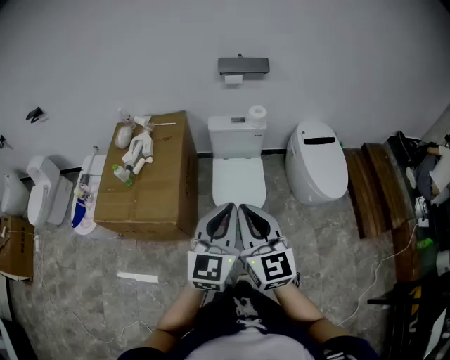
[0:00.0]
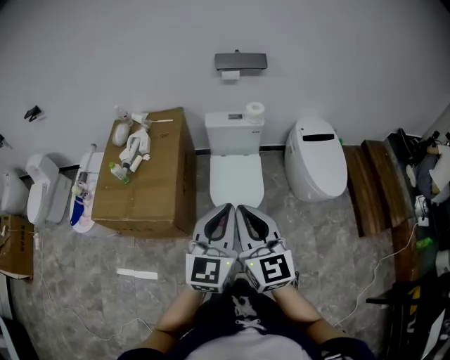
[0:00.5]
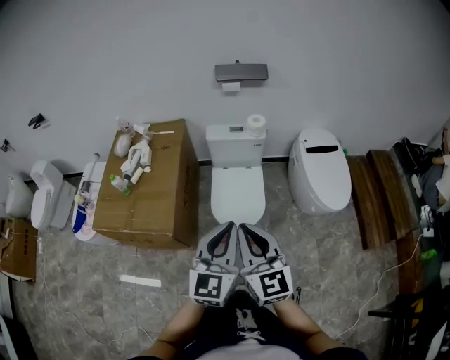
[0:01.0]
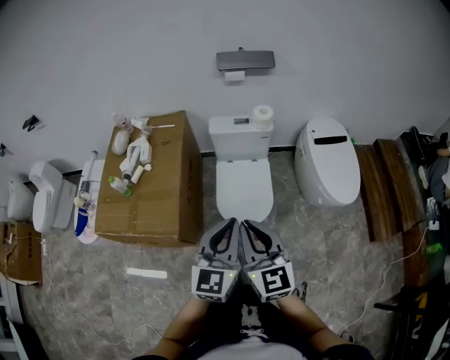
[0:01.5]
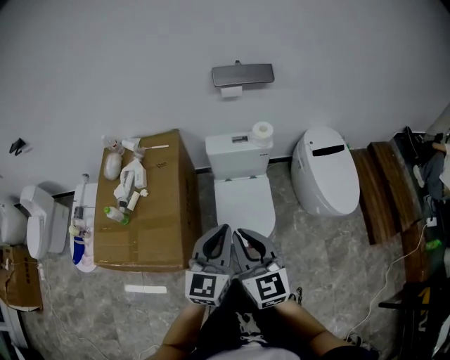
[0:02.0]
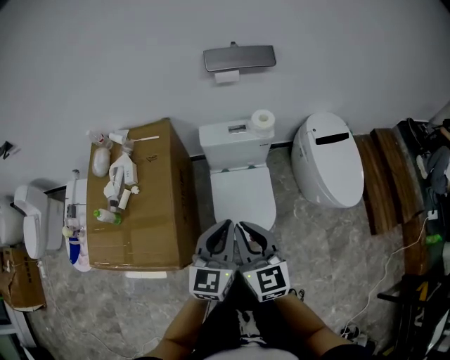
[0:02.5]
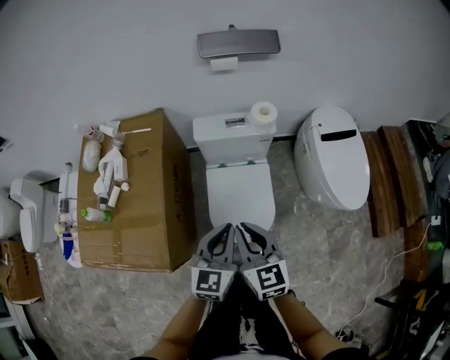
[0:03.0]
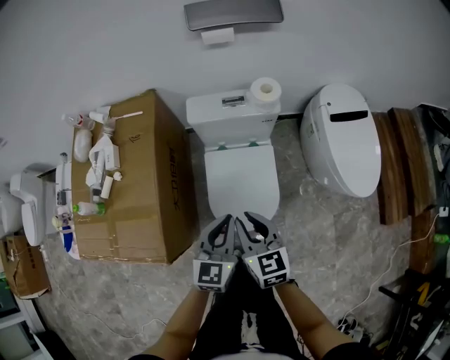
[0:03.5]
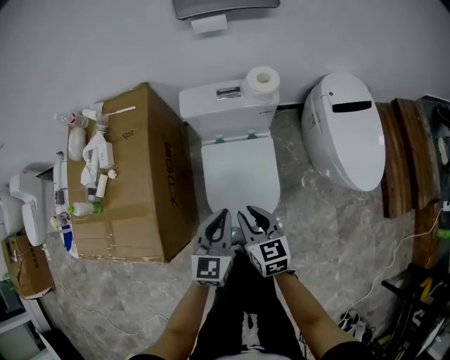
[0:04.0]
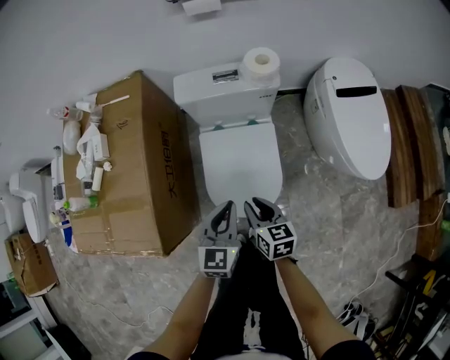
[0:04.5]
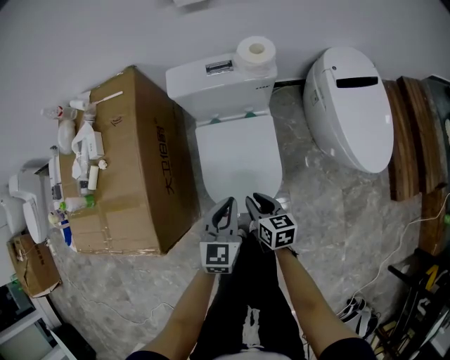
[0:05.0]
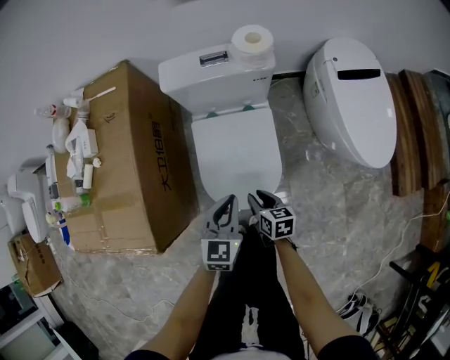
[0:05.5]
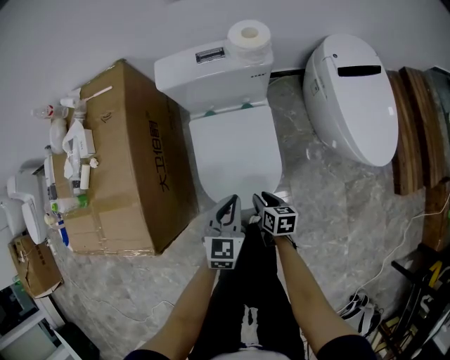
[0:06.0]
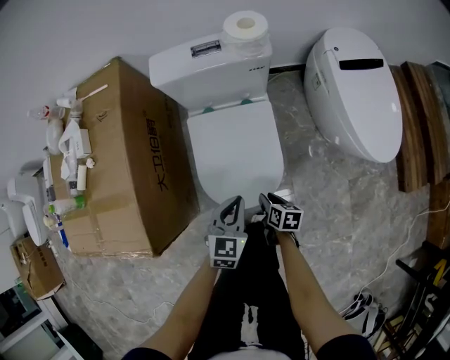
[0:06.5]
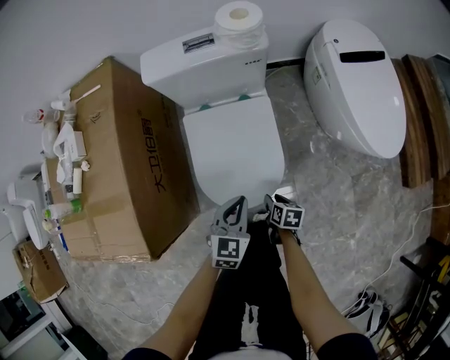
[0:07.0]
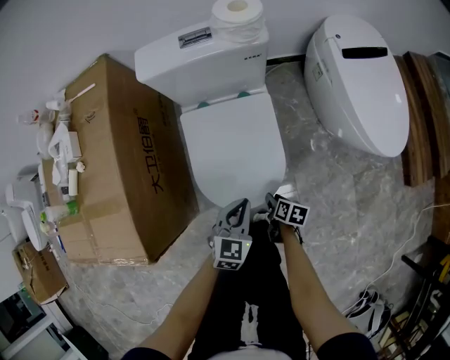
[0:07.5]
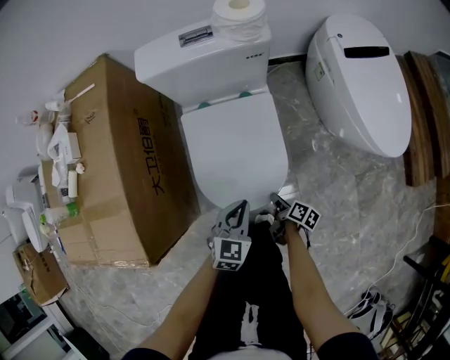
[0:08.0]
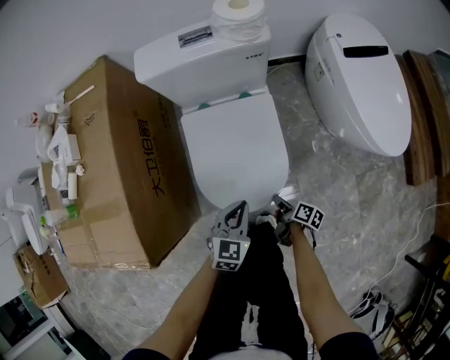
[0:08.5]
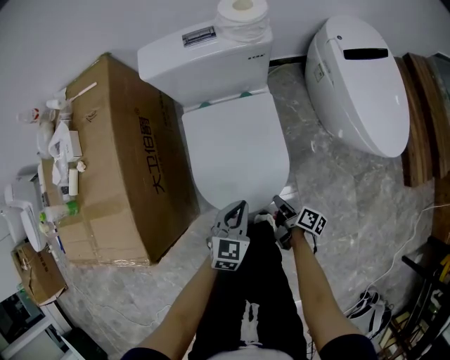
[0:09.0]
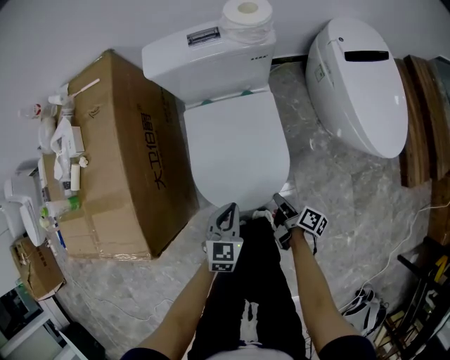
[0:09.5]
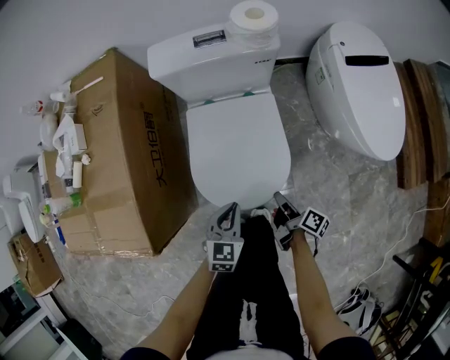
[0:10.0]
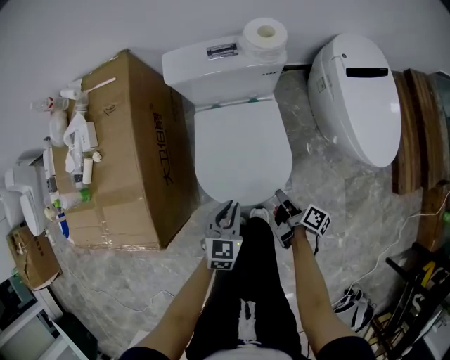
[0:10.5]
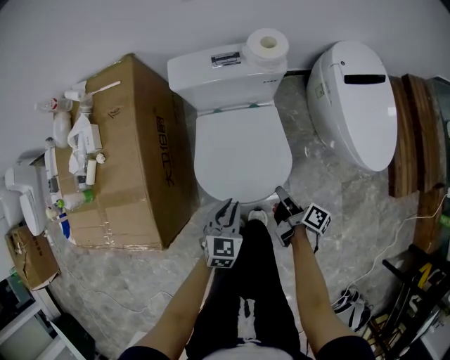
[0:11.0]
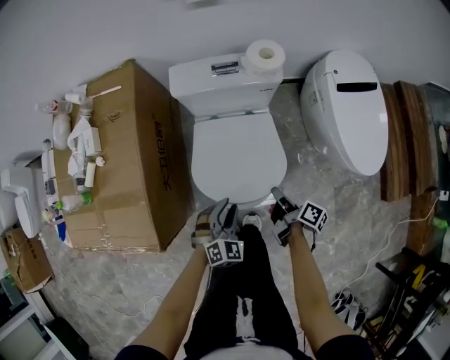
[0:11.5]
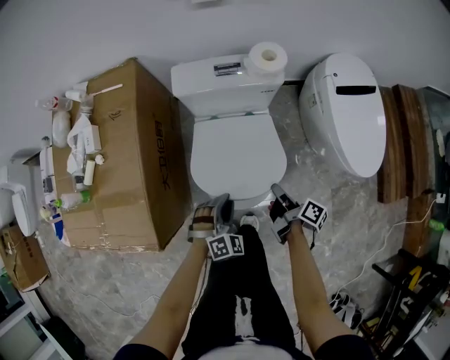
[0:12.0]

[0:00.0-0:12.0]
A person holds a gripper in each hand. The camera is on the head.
0.0 to 2.0 s: Both grippers travel together forward and downward, approximately 20 cm.
2.0 to 4.0 s: The two grippers go some 30 cm downward and forward. The right gripper changes its angle by roughly 30 degrees.
4.0 to 6.0 s: The right gripper shifts about 25 cm downward, and turns by approximately 30 degrees. Meanwhile the left gripper heads downward, covering approximately 15 cm.
6.0 to 8.0 s: Both grippers move downward, approximately 15 cm. The right gripper rotates around the line of its fingers by about 40 degrees, clockwise from behind.
8.0 to 10.0 s: The left gripper moves approximately 5 cm. The right gripper heads upward, covering some 15 cm.
10.0 to 12.0 s: The left gripper travels upward by about 5 cm, twists some 40 degrees clockwise, seen from behind, and opens. The right gripper moves upward and forward, roughly 15 cm.

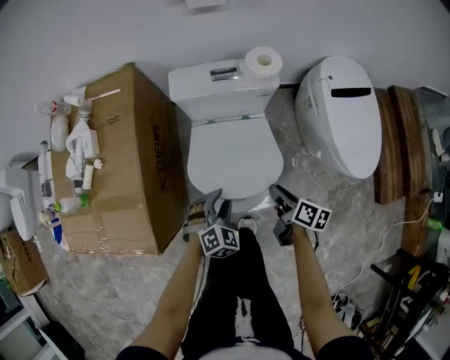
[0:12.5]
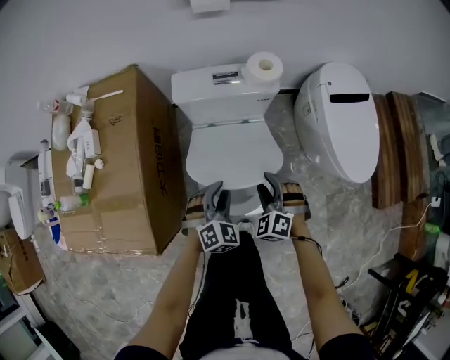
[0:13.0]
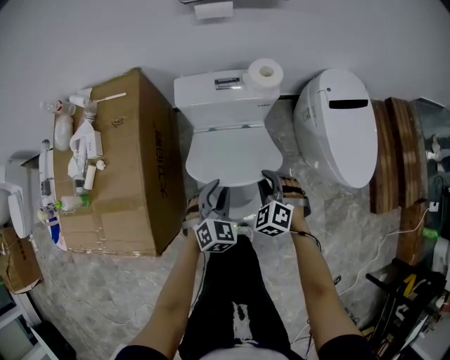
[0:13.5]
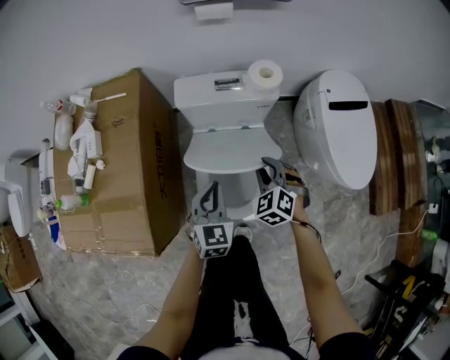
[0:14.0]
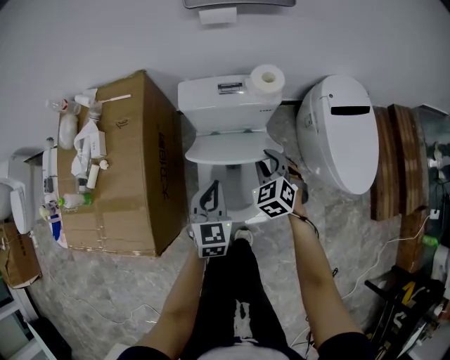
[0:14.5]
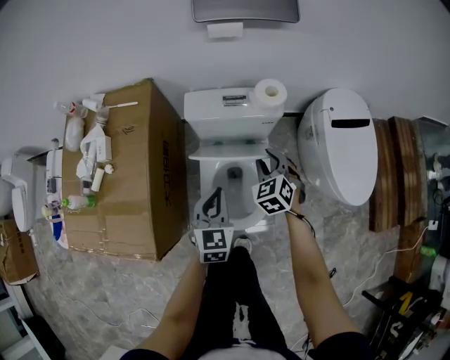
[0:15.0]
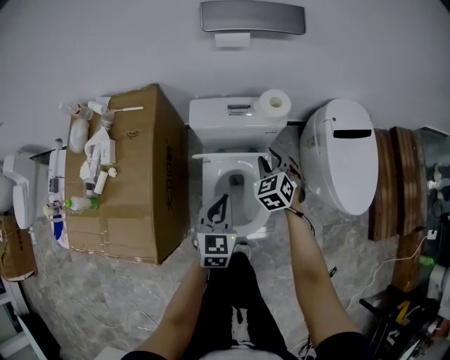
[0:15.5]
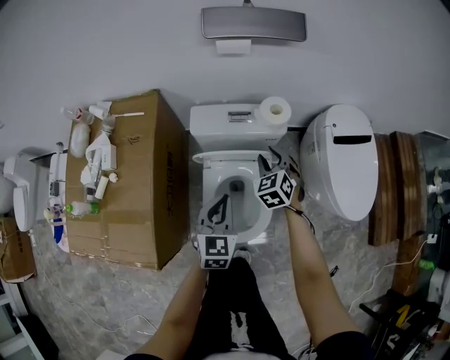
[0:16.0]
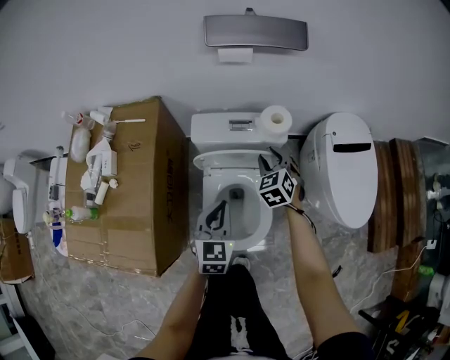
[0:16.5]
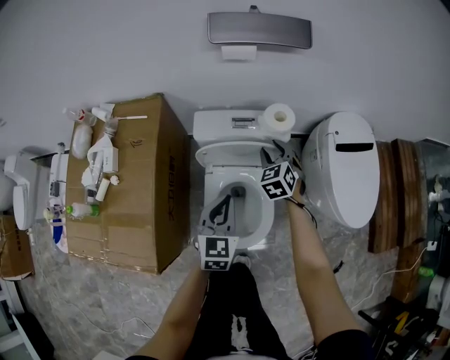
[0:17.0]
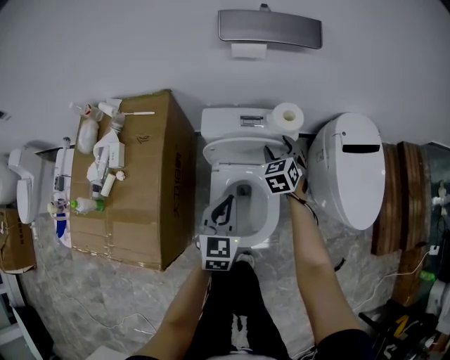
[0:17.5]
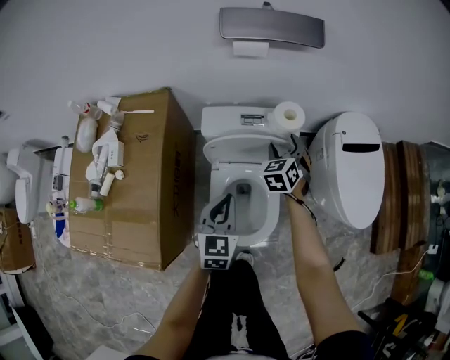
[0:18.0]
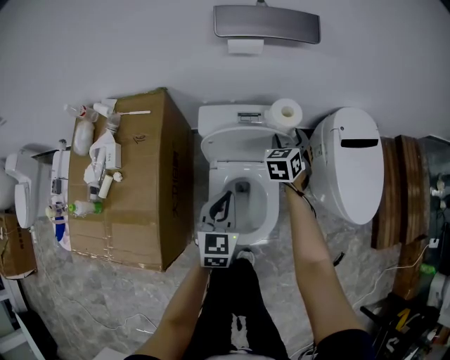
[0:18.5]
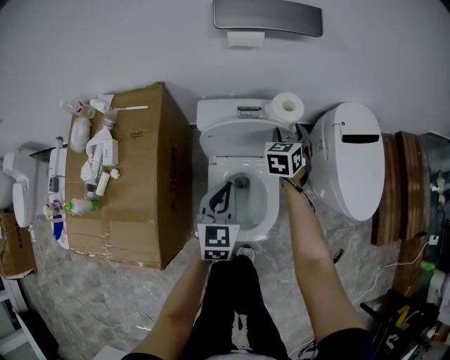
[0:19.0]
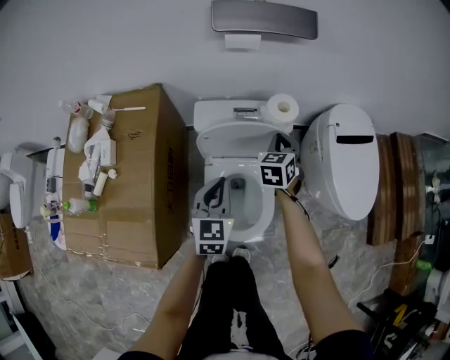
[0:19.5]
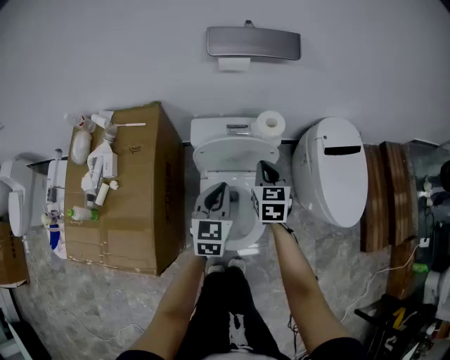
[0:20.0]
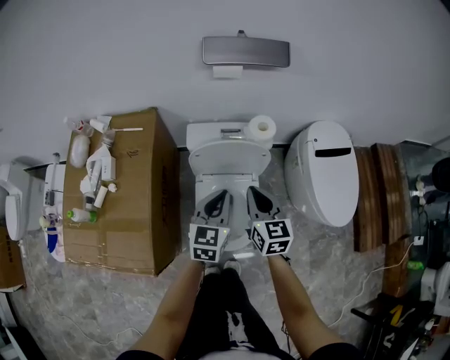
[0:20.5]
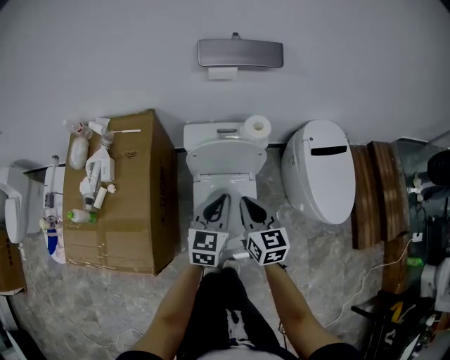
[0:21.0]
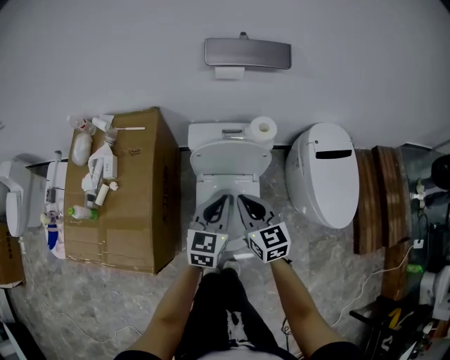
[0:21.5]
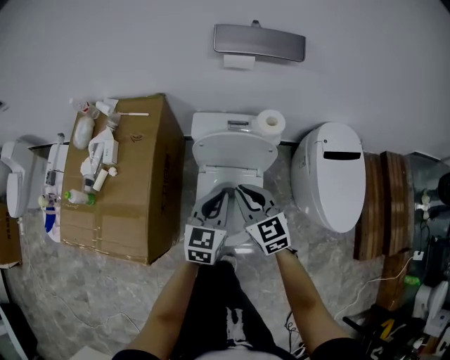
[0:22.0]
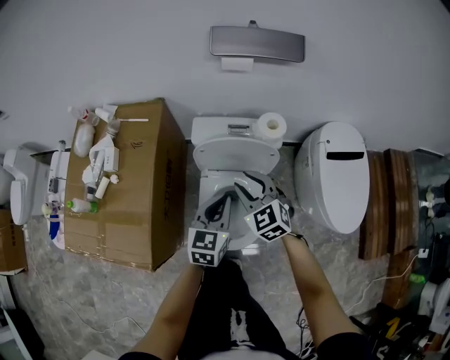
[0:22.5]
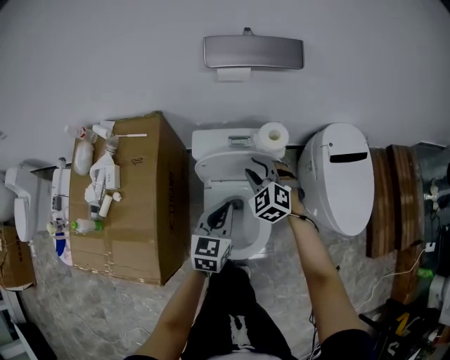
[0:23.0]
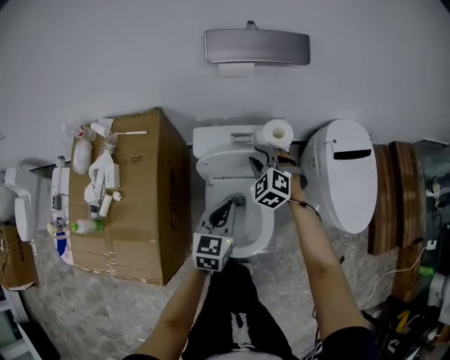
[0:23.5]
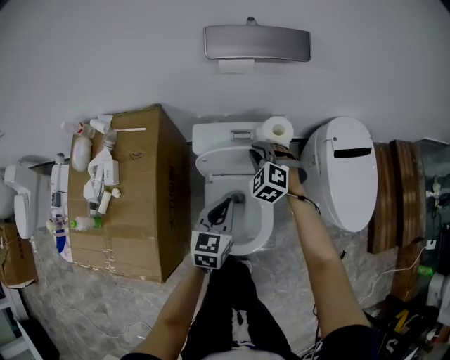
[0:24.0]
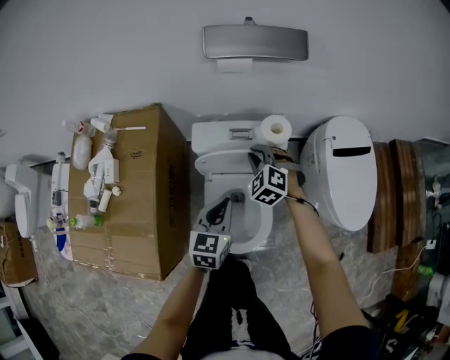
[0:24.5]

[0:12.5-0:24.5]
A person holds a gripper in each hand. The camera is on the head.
12.5 to 14.5 s: The right gripper is displaced forward, upward and to the left by some 15 cm, rotates around the line of its fingers by some 90 degrees, counterclockwise from behind, and opens, then closes again. Meanwhile the left gripper heads upward and forward, covering about 15 cm, changes its angle by some 40 degrees, and closes up.
14.5 to 16.5 s: The right gripper goes roughly 10 cm forward.
16.5 to 18.5 s: The right gripper travels forward by roughly 5 cm, turns by roughly 20 degrees, and opens.
18.5 to 20.5 s: The right gripper is displaced backward and upward by about 25 cm, changes its angle by about 40 degrees, and closes its fingers, while the left gripper shifts some 5 cm upward.
20.5 to 22.5 s: The right gripper changes place by approximately 5 cm, swivels about 40 degrees, and opens up.
22.5 to 24.5 s: The right gripper travels forward and downward by approximately 15 cm, and rotates about 30 degrees.

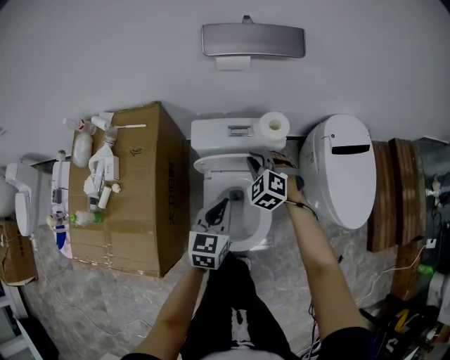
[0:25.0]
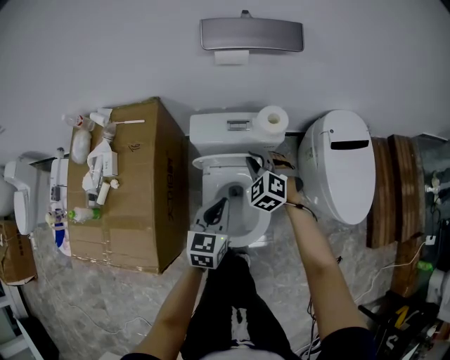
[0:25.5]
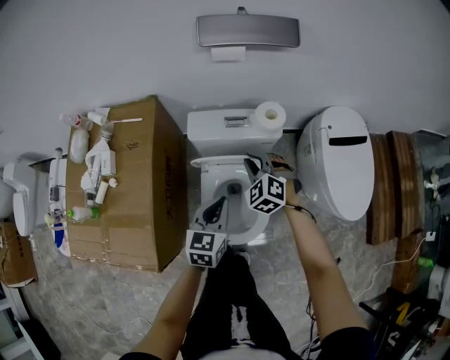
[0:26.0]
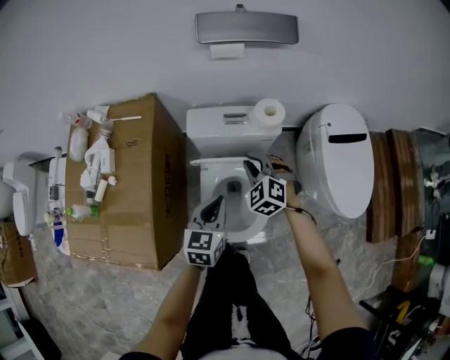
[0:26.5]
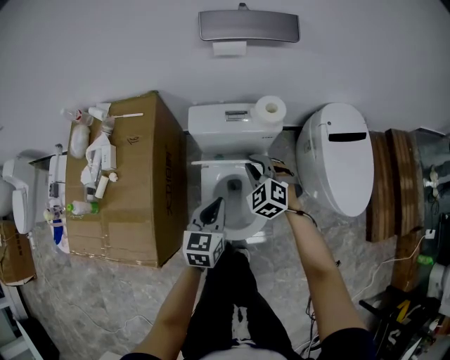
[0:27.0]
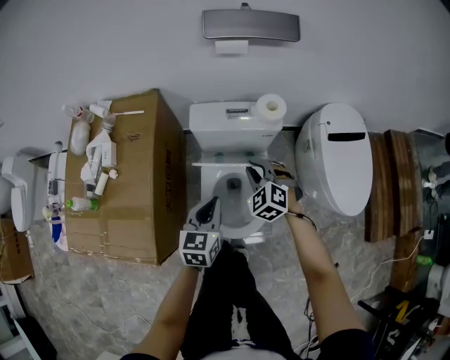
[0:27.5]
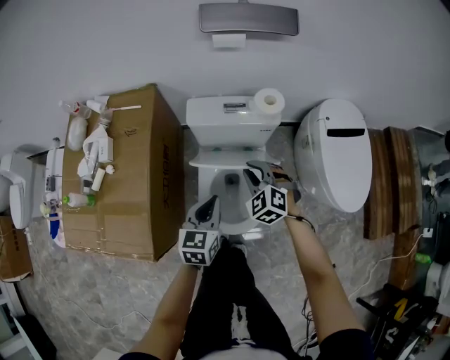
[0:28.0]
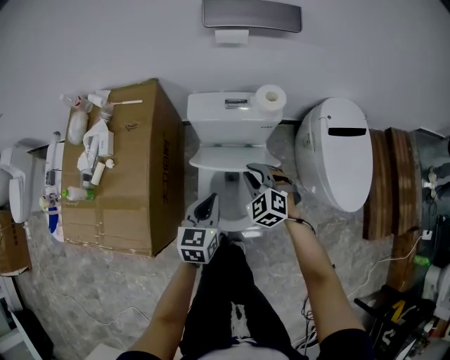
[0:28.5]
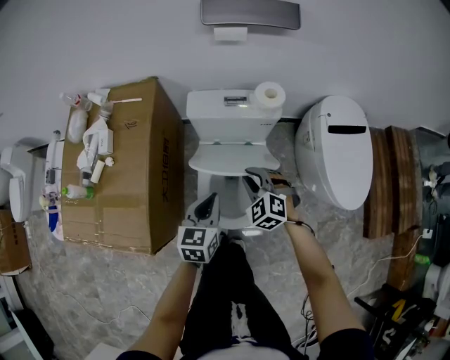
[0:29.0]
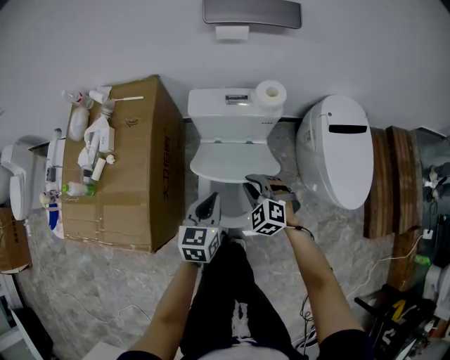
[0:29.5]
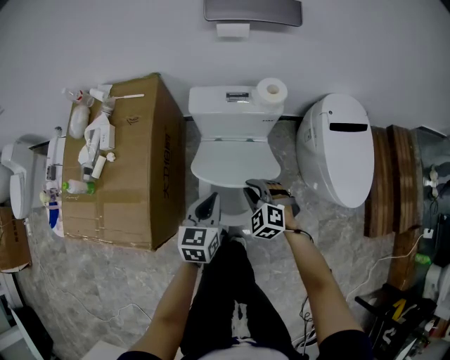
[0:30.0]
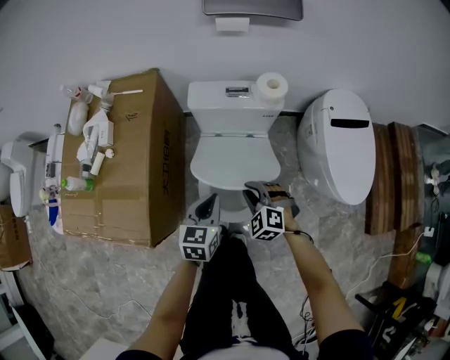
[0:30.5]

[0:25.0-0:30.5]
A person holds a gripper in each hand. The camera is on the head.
25.0 to 27.0 s: The left gripper ends up some 5 cm from where it was; the right gripper is displaced backward by roughly 5 cm.
27.0 to 28.5 s: The right gripper travels backward by about 5 cm.
28.5 to 30.5 s: The right gripper goes approximately 10 cm backward and downward.
